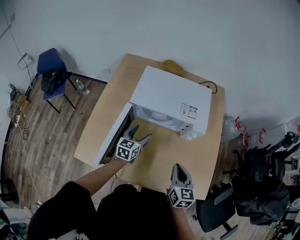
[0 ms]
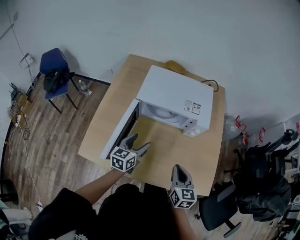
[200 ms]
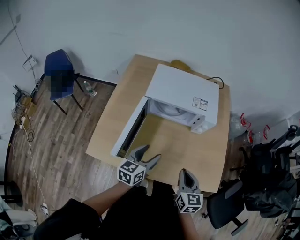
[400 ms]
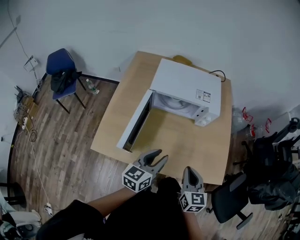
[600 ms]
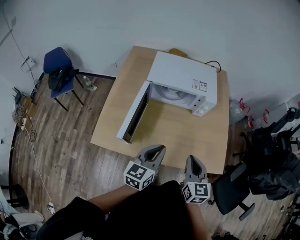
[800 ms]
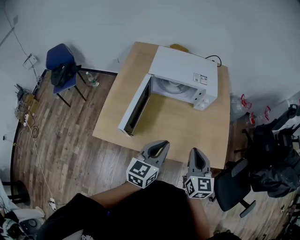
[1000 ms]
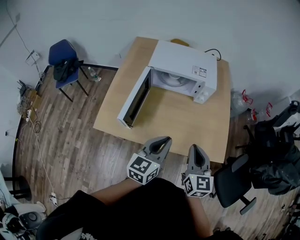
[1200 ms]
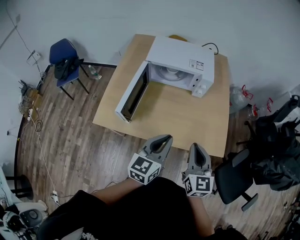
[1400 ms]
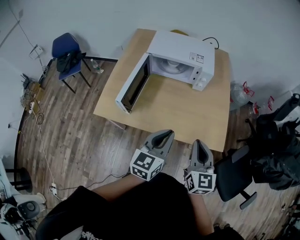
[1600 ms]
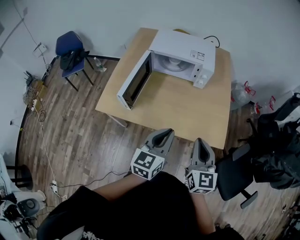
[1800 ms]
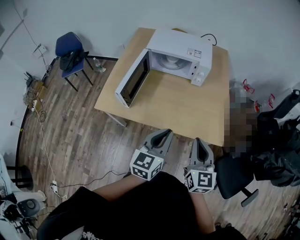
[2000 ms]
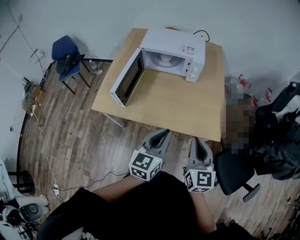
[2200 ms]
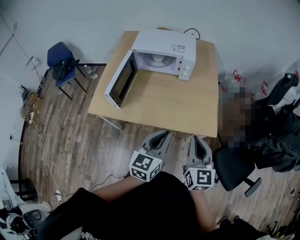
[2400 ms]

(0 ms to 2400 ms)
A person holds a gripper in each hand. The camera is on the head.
0 ms - 1200 ms: The right gripper moves backward and upward, roughly 20 cm. The left gripper heads backward and upward, covering some 35 cm, and closes.
1200 ms - 2400 ms: Both grippers move to the right and backward, roughly 15 cm.

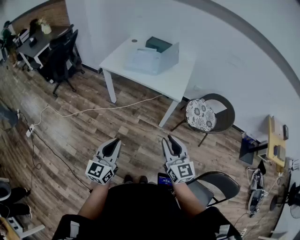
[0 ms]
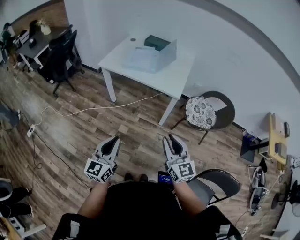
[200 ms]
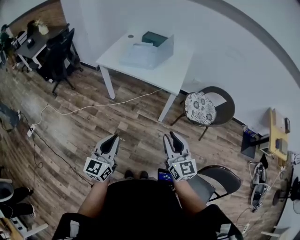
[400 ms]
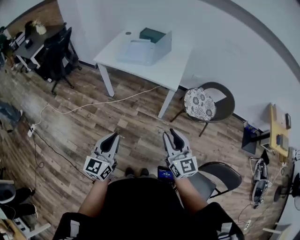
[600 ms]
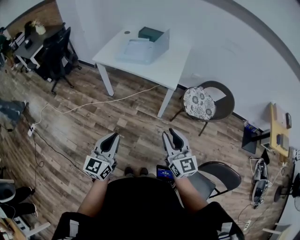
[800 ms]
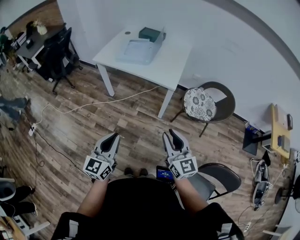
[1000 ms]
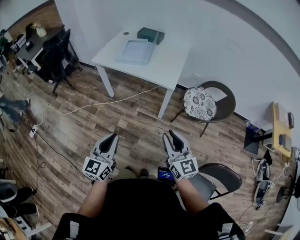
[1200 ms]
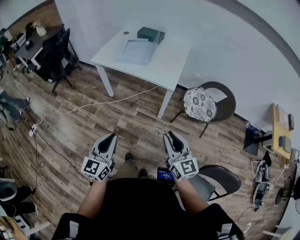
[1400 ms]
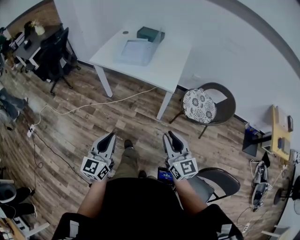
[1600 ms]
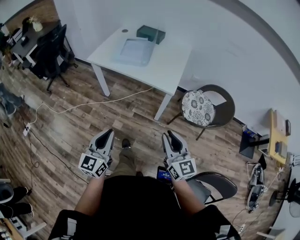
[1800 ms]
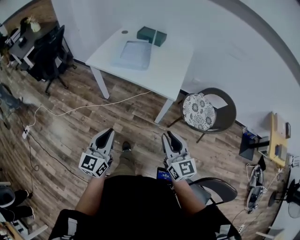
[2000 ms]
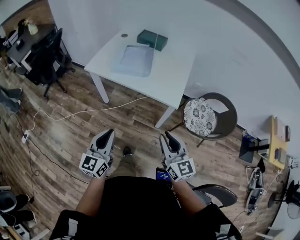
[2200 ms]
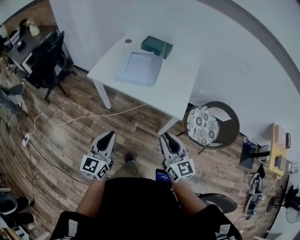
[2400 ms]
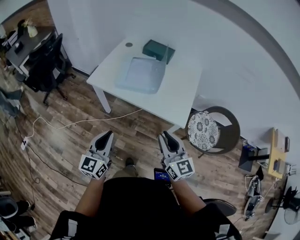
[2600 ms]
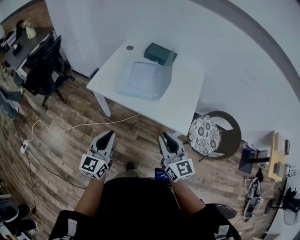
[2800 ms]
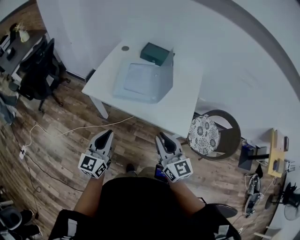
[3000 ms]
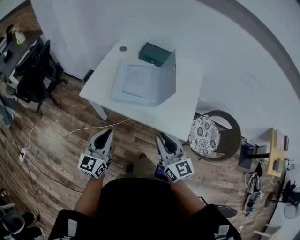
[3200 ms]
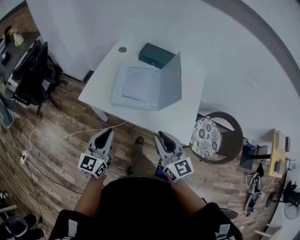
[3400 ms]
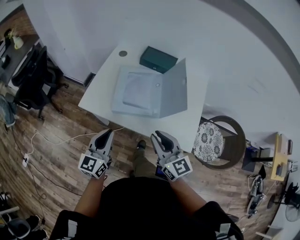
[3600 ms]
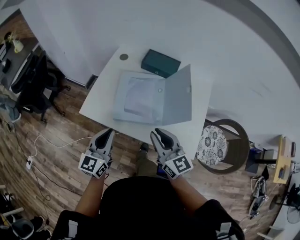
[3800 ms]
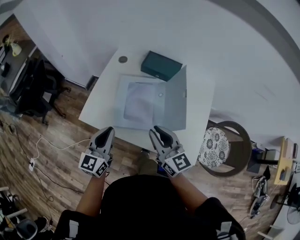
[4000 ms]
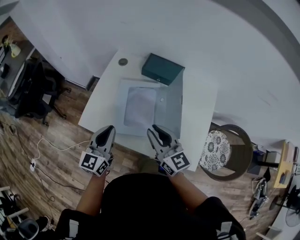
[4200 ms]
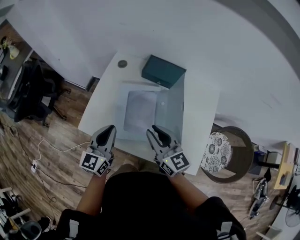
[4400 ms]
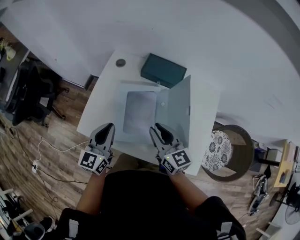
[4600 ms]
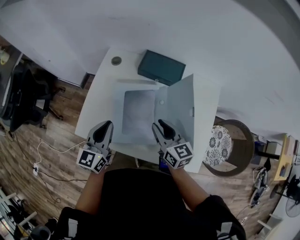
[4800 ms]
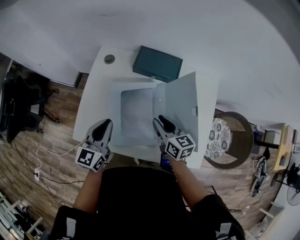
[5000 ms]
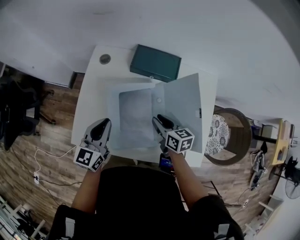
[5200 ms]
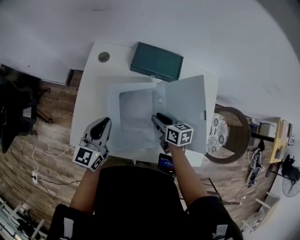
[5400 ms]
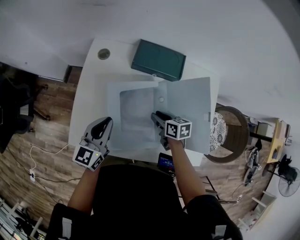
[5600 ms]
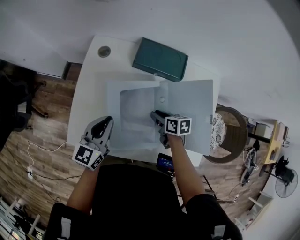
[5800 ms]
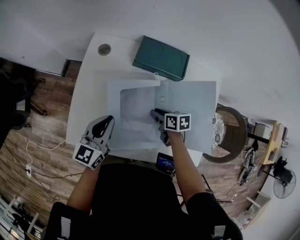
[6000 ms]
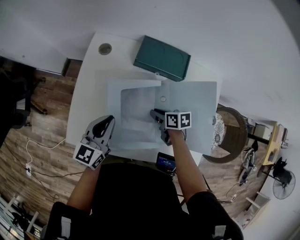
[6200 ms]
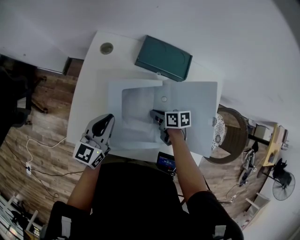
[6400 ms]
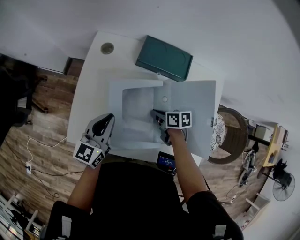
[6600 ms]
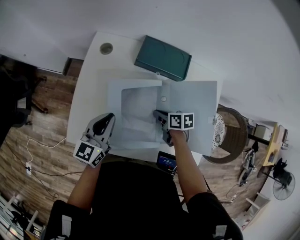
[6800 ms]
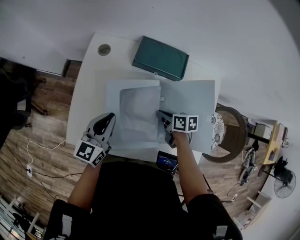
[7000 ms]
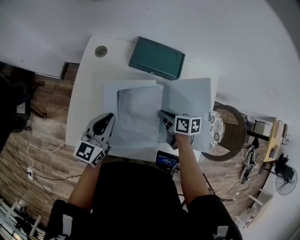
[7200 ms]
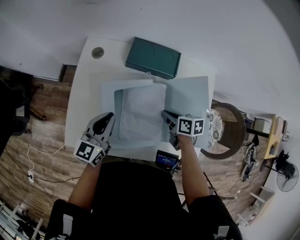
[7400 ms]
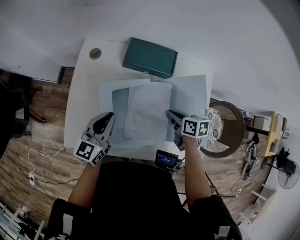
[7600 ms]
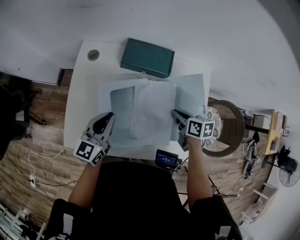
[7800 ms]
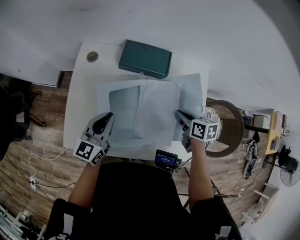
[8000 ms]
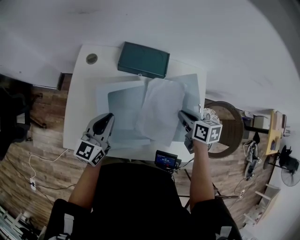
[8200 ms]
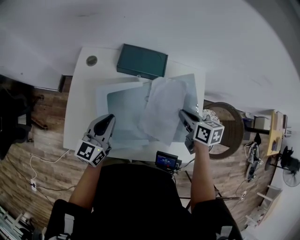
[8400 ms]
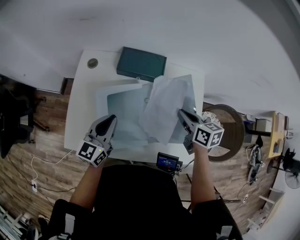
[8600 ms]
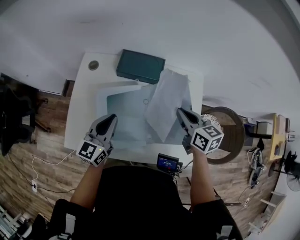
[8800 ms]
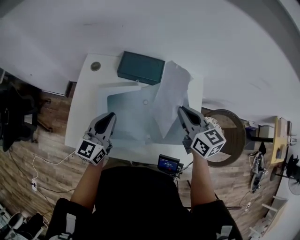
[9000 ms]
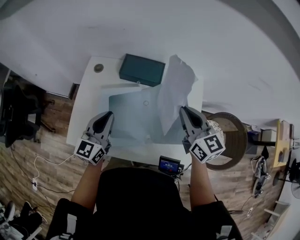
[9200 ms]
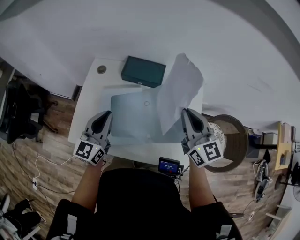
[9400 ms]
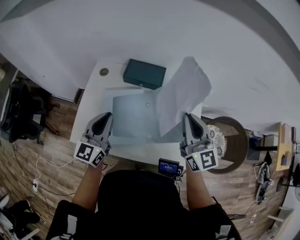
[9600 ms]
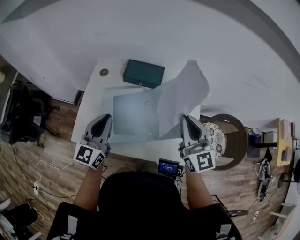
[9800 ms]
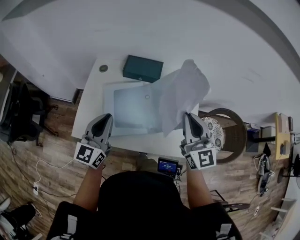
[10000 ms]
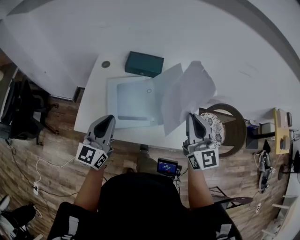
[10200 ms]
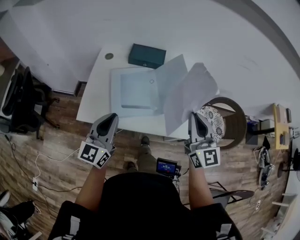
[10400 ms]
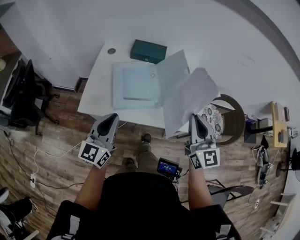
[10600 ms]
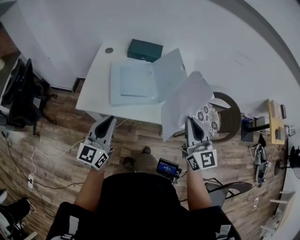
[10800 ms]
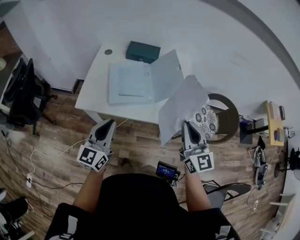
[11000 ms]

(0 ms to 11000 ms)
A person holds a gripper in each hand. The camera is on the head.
0 ms - 1600 ms: Both grippers move to the right, some 5 cm.
1600 ms - 3200 ms: Both grippers move forward, approximately 40 cm.
3200 ms - 4800 ms: Both grippers travel together forward, some 35 cm.
4800 ms - 6200 ms: The right gripper moves downward, some 20 cm, and swivels some 50 degrees. The left gripper is displaced downward and forward by approximately 10 cm.
6200 ms - 7800 ms: The right gripper is displaced to the right and upward by about 15 cm.
7800 ms - 9400 ms: The left gripper is displaced upward by approximately 10 cm. The right gripper moves upward, some 25 cm, and points its fingers approximately 40 degrees further upward.
9400 ms - 11000 ms: The grippers both shift backward by approximately 30 cm.

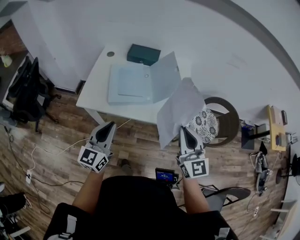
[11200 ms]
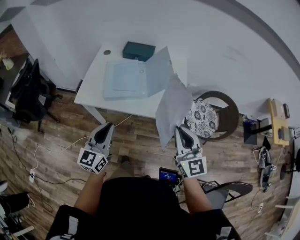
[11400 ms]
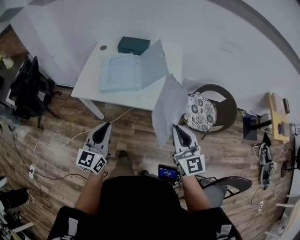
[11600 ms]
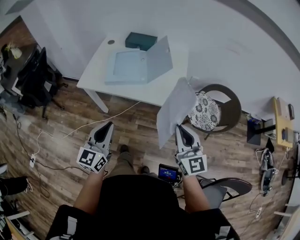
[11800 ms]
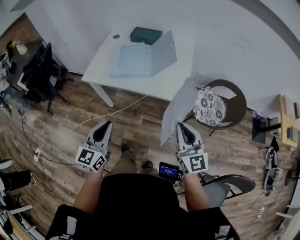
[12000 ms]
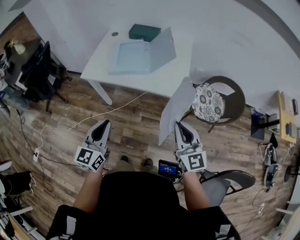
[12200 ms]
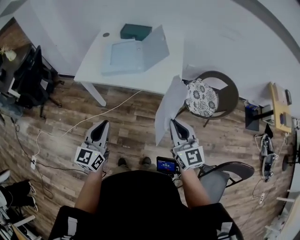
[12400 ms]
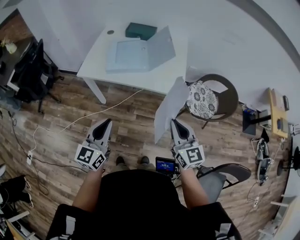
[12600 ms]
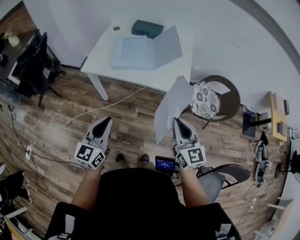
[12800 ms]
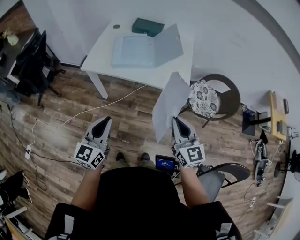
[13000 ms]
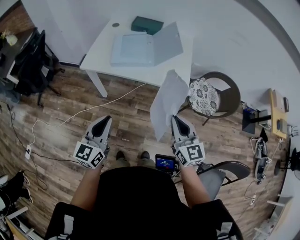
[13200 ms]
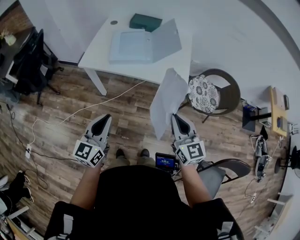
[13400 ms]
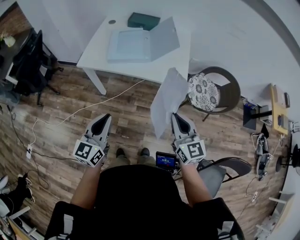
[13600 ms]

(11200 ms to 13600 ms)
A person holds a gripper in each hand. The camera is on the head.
11200 ms - 12400 ms: Both grippers travel together backward, approximately 15 cm.
12400 ms - 13600 ms: The grippers make only small movements.

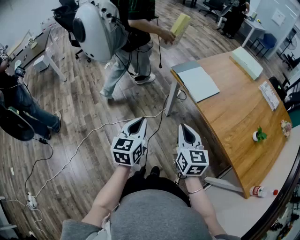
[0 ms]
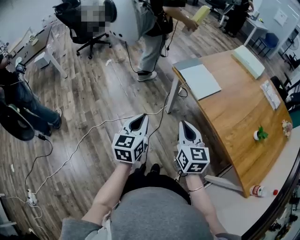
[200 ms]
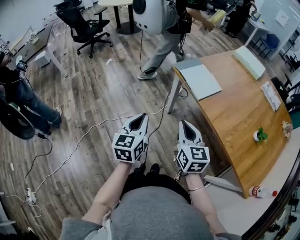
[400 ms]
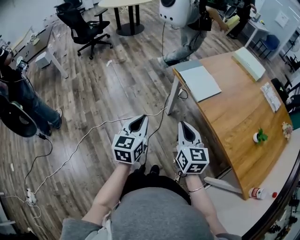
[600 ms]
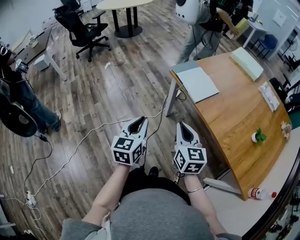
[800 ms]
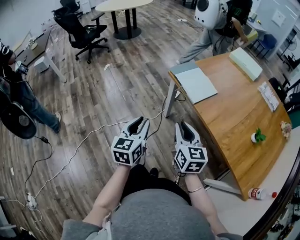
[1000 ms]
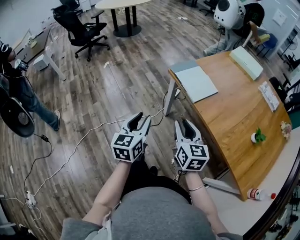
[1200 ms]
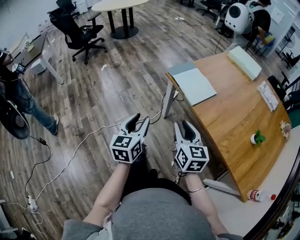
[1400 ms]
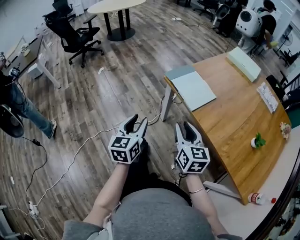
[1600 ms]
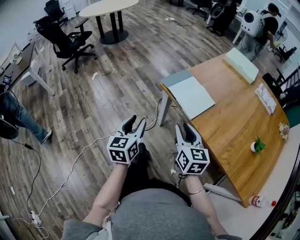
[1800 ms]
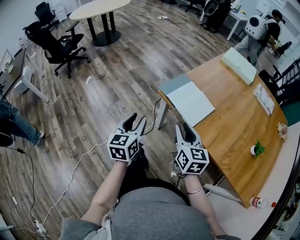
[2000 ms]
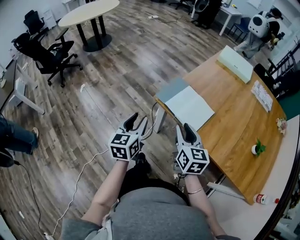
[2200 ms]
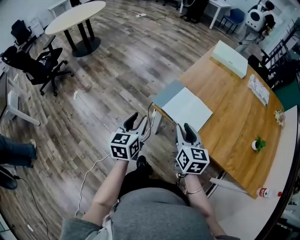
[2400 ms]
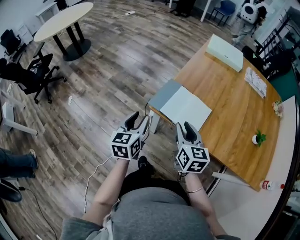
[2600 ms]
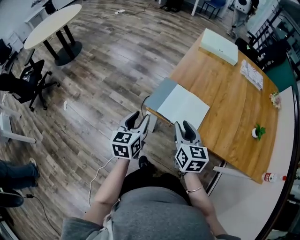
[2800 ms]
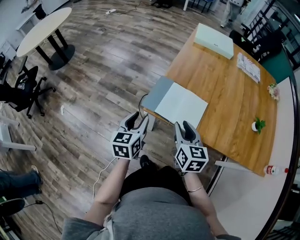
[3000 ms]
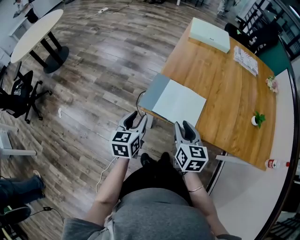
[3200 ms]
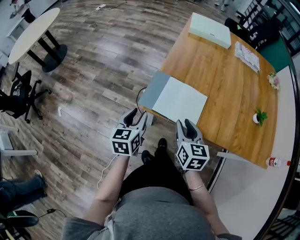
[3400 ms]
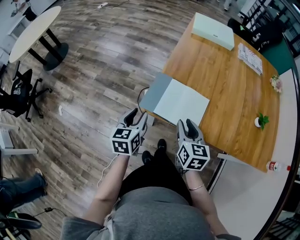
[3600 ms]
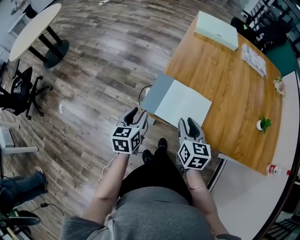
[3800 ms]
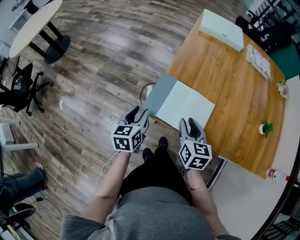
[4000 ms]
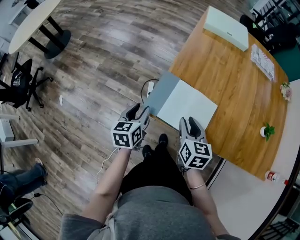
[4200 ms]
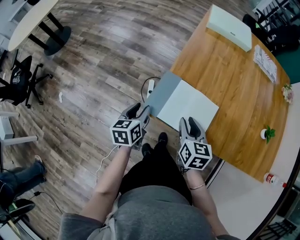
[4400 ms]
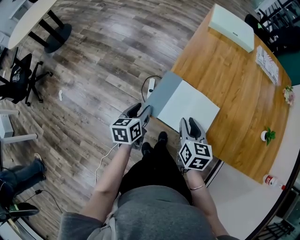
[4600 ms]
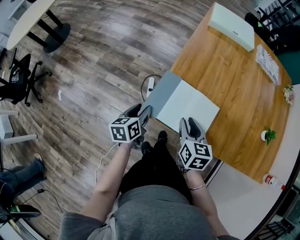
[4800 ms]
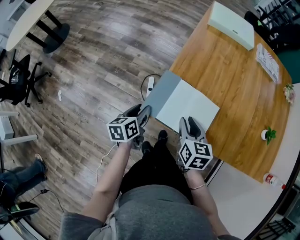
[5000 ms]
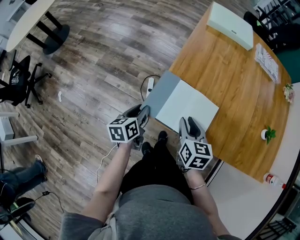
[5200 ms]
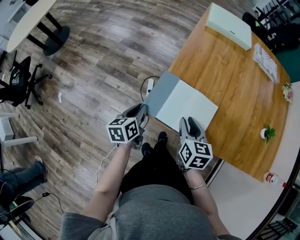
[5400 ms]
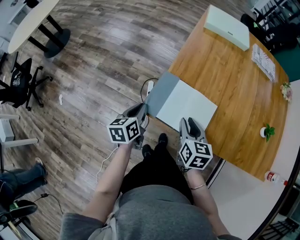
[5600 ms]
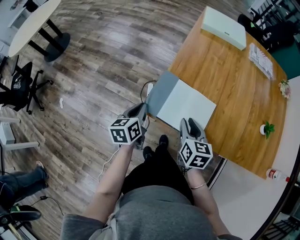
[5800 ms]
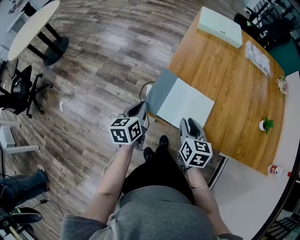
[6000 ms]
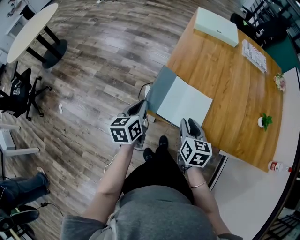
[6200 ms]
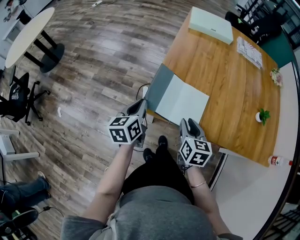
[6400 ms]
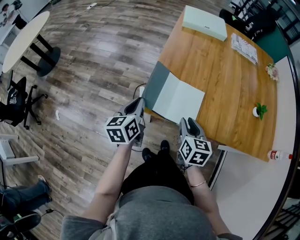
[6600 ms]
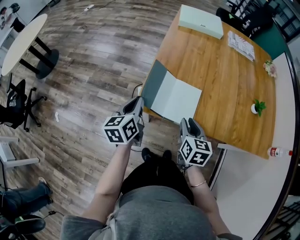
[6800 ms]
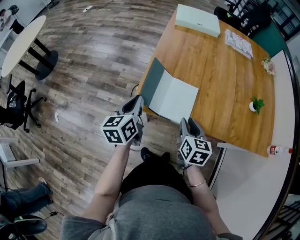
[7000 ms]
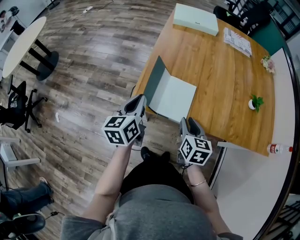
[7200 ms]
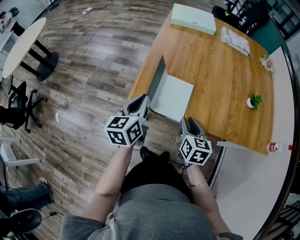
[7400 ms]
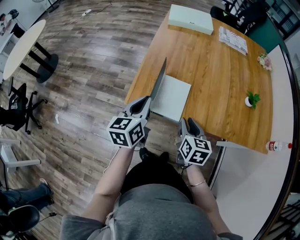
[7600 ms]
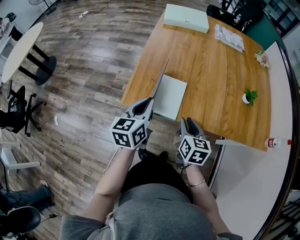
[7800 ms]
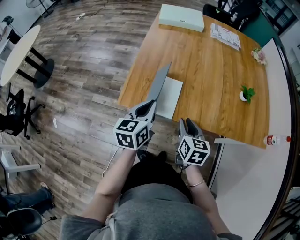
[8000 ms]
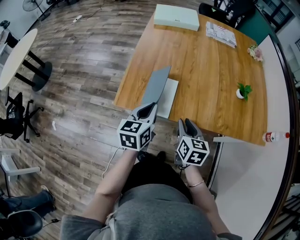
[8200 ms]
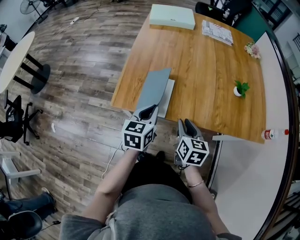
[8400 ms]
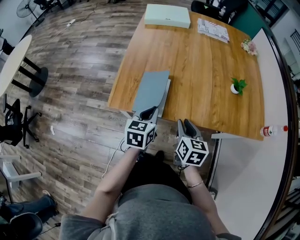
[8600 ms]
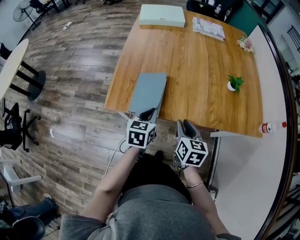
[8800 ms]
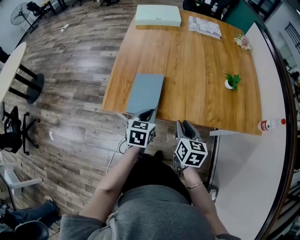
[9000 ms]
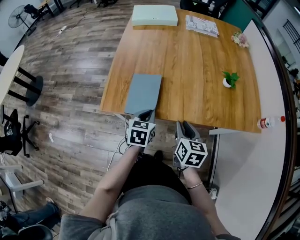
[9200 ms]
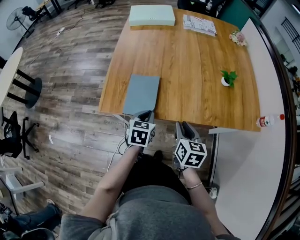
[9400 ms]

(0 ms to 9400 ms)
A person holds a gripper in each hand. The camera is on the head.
0 ms - 1600 ms: Both grippers travel together forward, some 10 cm. The left gripper opens up, while the right gripper opens its fingers.
1600 ms - 3200 ms: The left gripper ends up roughly 30 cm from where it was, and turns by about 30 degrees. Meanwhile the right gripper moves some 20 cm, and changes its angle by approximately 30 degrees.
3200 ms - 4800 ms: The right gripper is displaced forward and downward by approximately 10 cm; the left gripper travels downward and forward by some 10 cm, and swivels about 20 degrees.
4800 ms - 6200 ms: The left gripper moves upward, about 10 cm, and closes.
6200 ms - 7800 ms: The right gripper shifts about 10 cm to the right and backward. The left gripper travels to the right and upward by approximately 15 cm.
7800 ms - 9400 ms: The left gripper heads downward and to the right, covering roughly 15 cm, and changes its angle by roughly 30 degrees. The right gripper travels to the right by some 10 cm.
